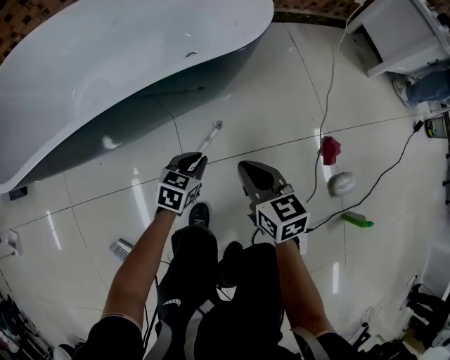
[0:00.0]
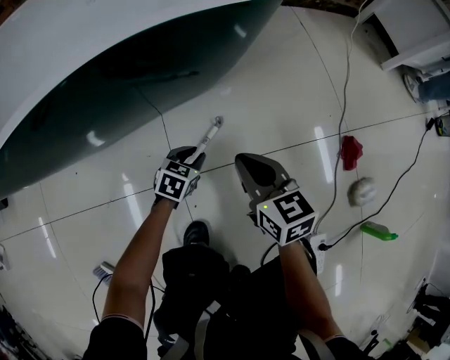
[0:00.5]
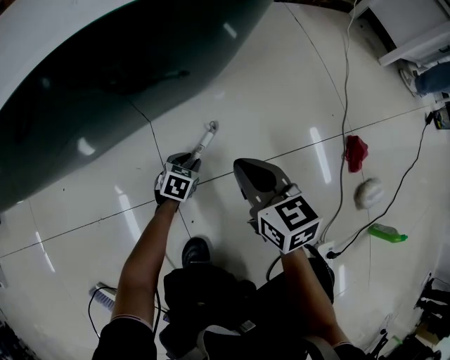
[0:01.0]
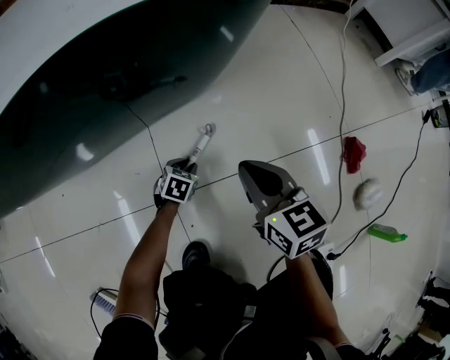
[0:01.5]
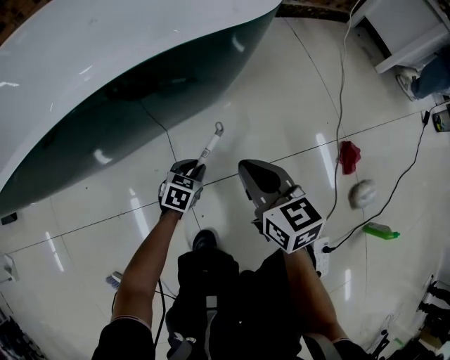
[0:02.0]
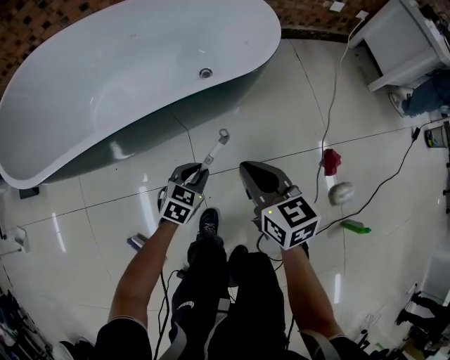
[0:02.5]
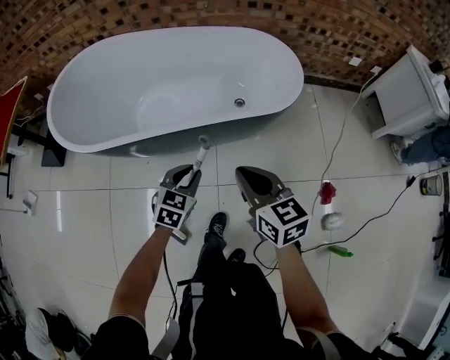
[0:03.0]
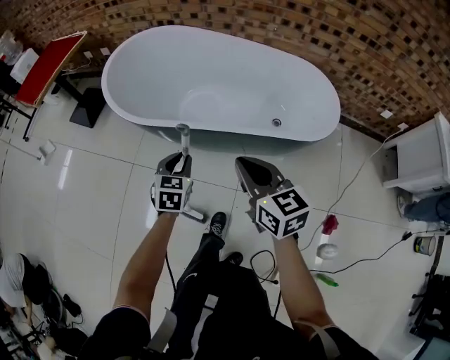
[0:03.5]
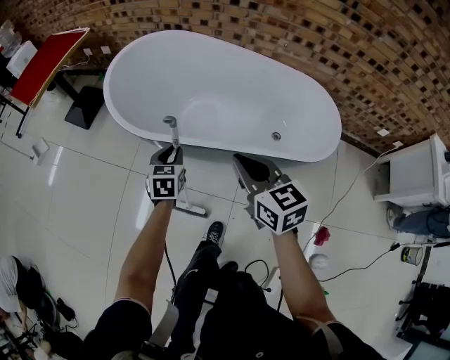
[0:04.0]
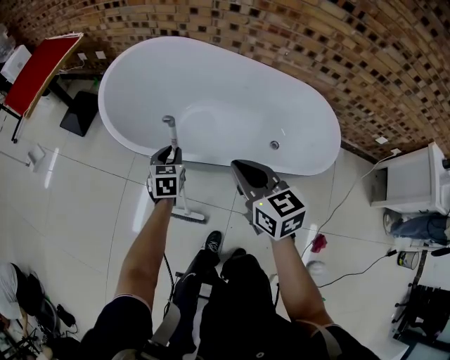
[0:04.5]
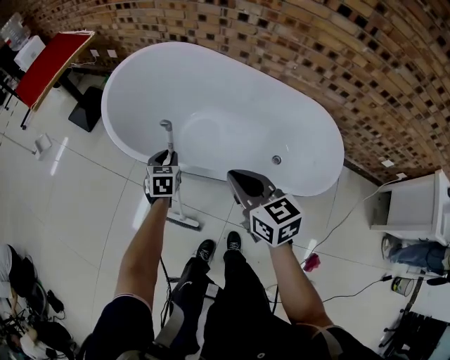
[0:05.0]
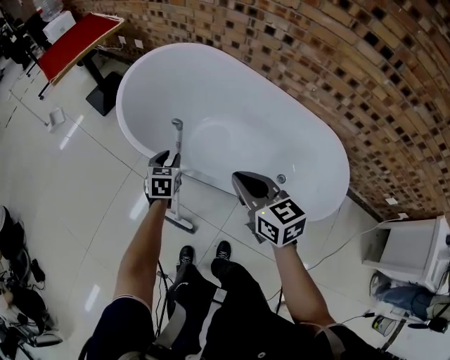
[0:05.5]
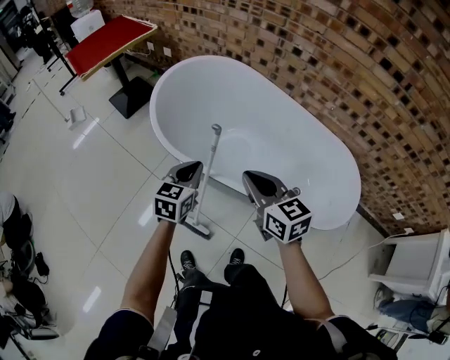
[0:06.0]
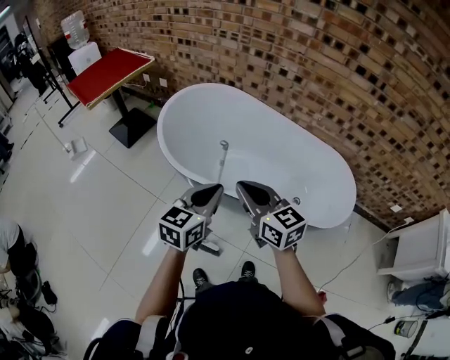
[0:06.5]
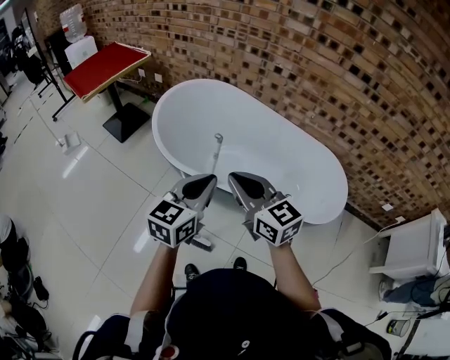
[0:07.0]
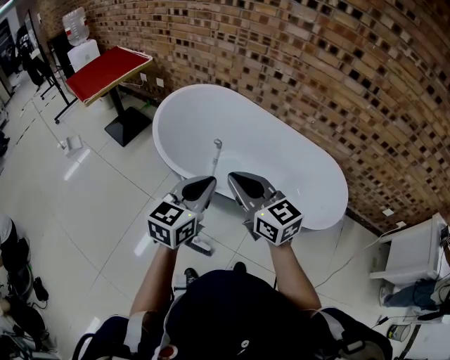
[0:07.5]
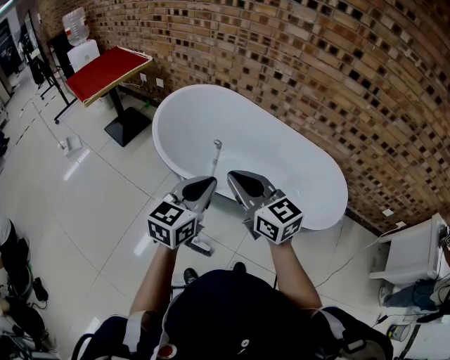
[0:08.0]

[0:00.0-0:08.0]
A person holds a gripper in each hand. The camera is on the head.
0:00.0 to 0:02.0: The left gripper shifts some 20 cm downward. Meanwhile the right gripper heads downward, covering some 10 cm.
0:02.0 to 0:04.0: The two grippers go roughly 50 cm upward. The right gripper changes its angle by some 40 degrees. The left gripper rotates about 60 degrees.
0:04.0 to 0:06.0: The right gripper shifts approximately 10 cm forward; the left gripper goes some 10 cm upward.
0:06.0 to 0:08.0: The right gripper heads upward and to the left, covering some 10 cm, while the left gripper travels upward and backward by about 20 cm, and turns by about 20 degrees.

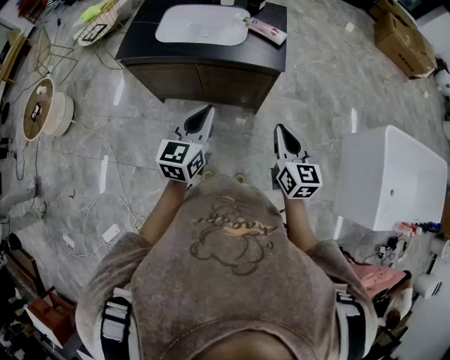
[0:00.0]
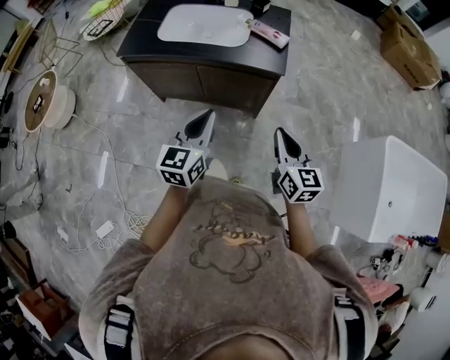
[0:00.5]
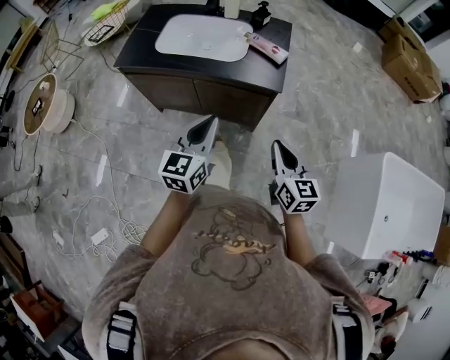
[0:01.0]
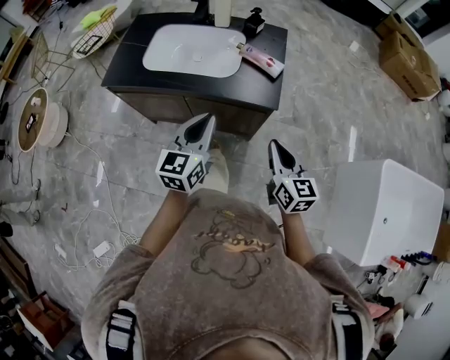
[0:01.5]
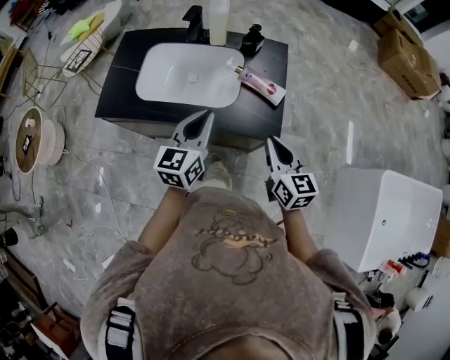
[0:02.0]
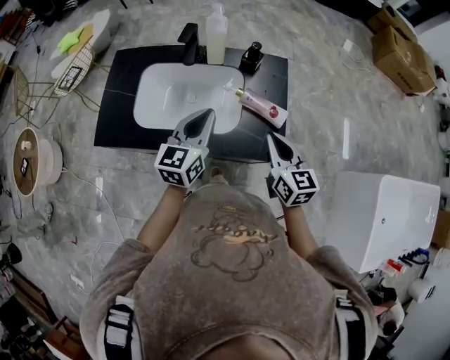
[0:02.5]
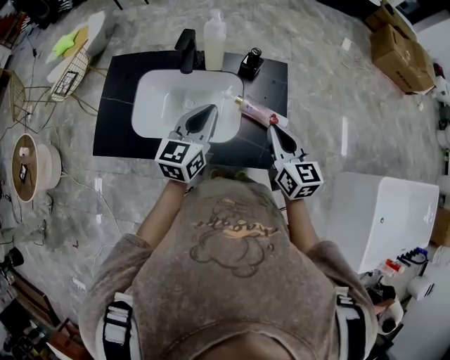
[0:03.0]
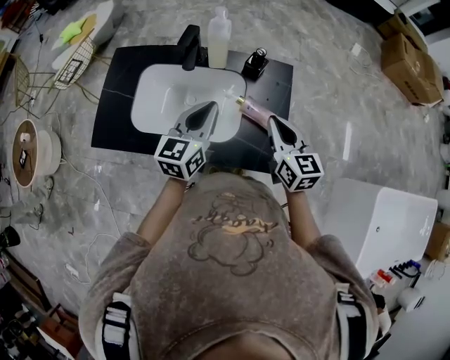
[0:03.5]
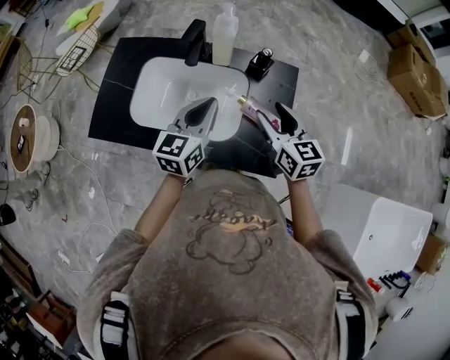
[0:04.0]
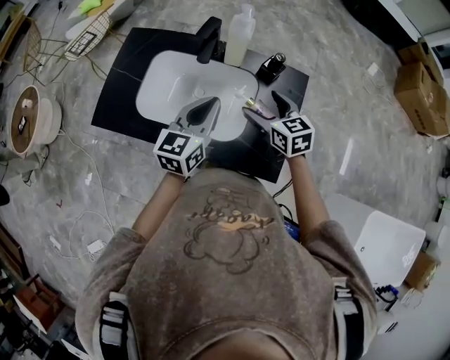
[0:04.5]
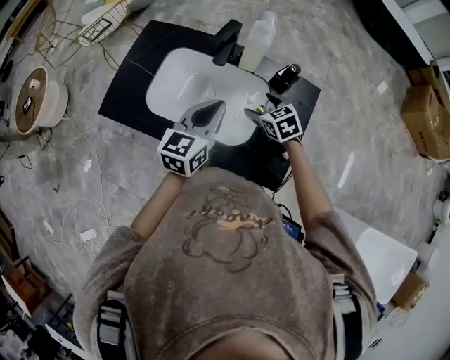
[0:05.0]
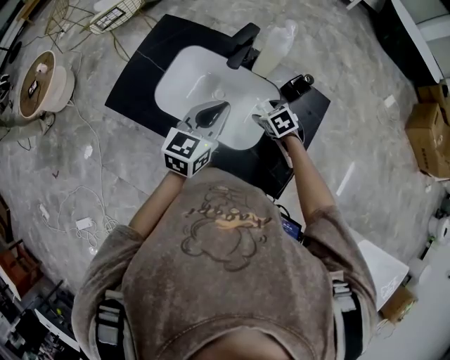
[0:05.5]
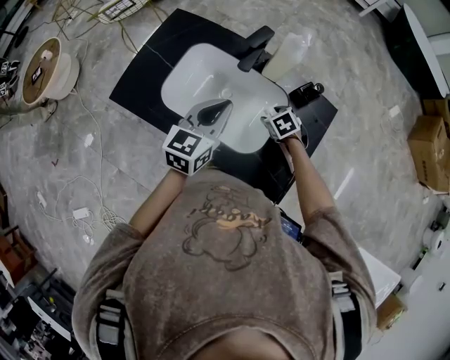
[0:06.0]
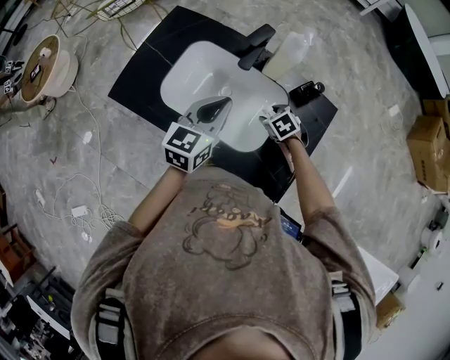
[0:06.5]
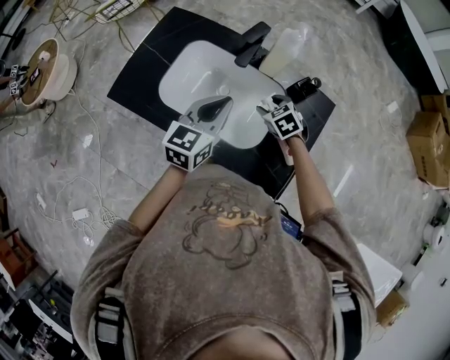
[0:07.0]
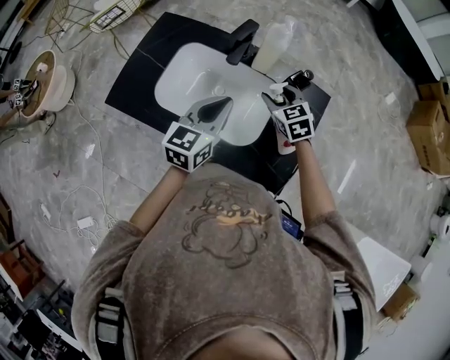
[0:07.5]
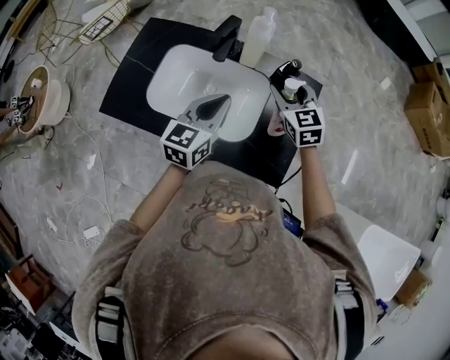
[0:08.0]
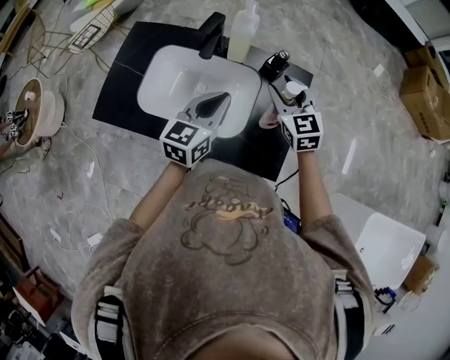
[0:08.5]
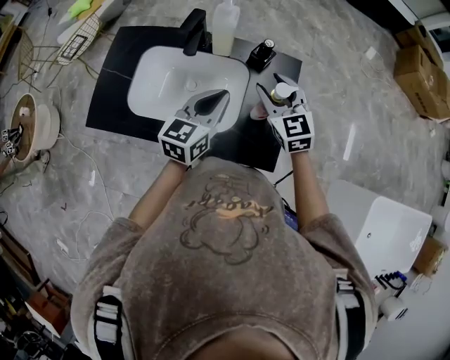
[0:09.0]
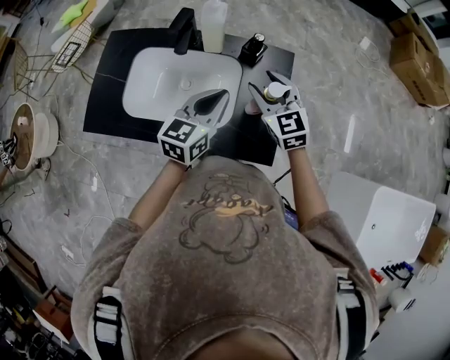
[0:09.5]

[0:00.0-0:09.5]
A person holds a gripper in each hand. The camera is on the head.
0:00.0 to 0:02.0: Both grippers move forward, about 30 cm.
0:02.0 to 0:04.0: The two grippers go some 20 cm forward. The right gripper opens its fingers.
0:04.0 to 0:05.5: The right gripper moves downward and forward, about 20 cm, and tips its fingers downward by some 40 degrees. The left gripper moves to the left, roughly 5 cm.
0:05.5 to 0:07.5: The right gripper travels upward by about 10 cm, and changes its angle by approximately 20 degrees.
0:07.5 to 0:09.5: The right gripper heads to the right, upward and backward, covering roughly 15 cm, and swivels about 20 degrees, while the left gripper is displaced to the right by about 10 cm.

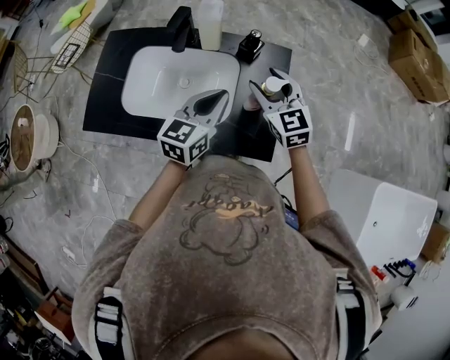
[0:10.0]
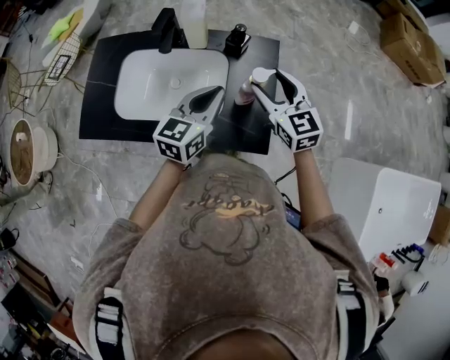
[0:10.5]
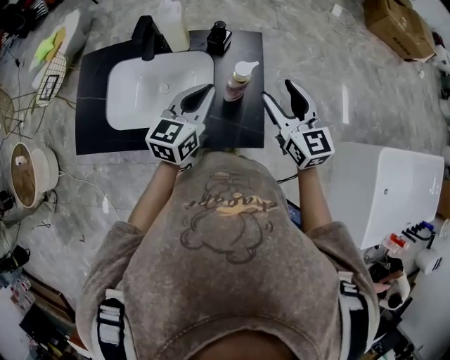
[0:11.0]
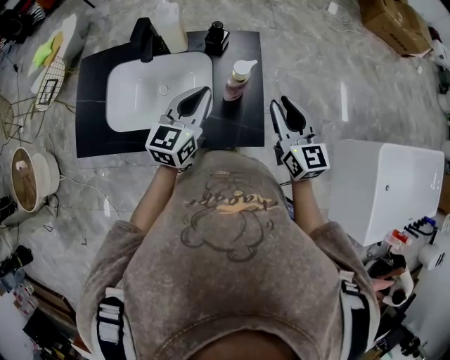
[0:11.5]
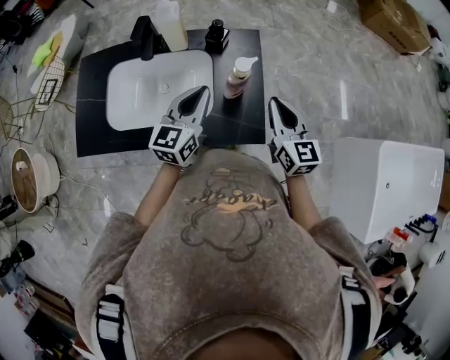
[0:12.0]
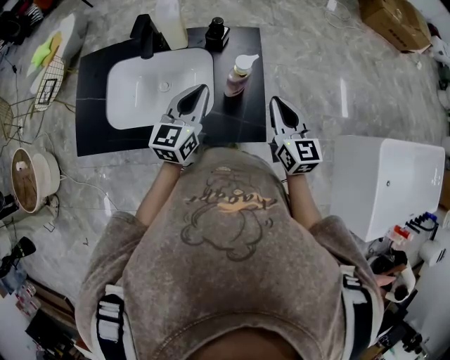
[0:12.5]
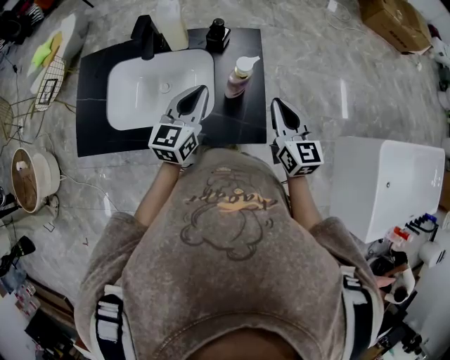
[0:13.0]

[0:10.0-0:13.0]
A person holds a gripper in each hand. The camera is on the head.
0:10.0 to 0:11.5: The right gripper goes about 15 cm to the right and backward, and changes its angle by some 30 degrees.
0:11.5 to 0:13.0: There are only small adjustments of the grippers.

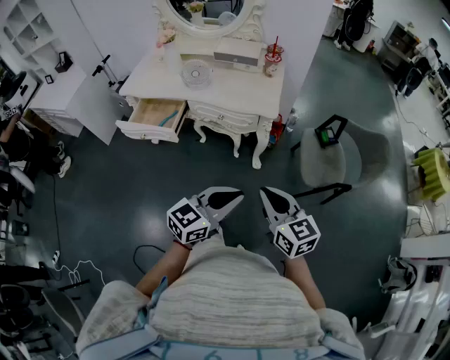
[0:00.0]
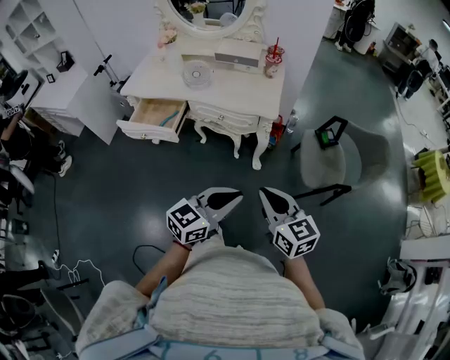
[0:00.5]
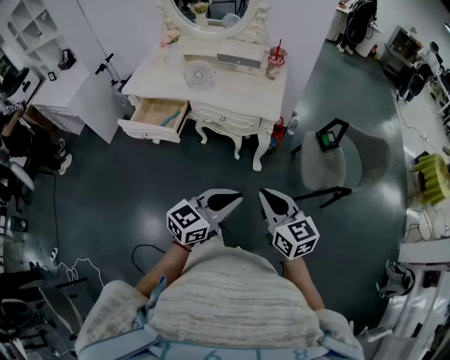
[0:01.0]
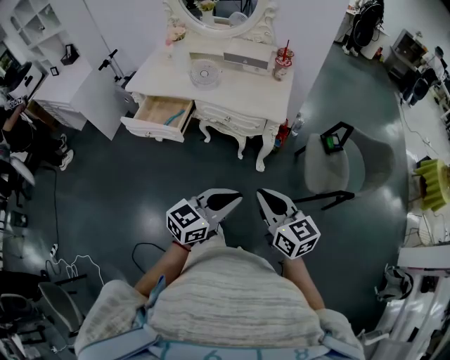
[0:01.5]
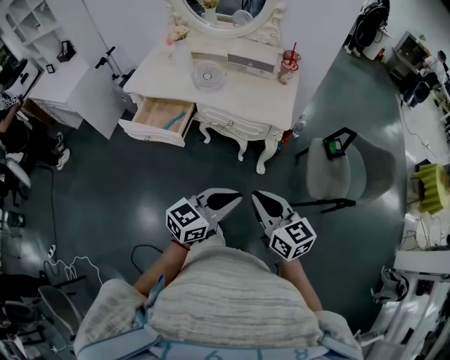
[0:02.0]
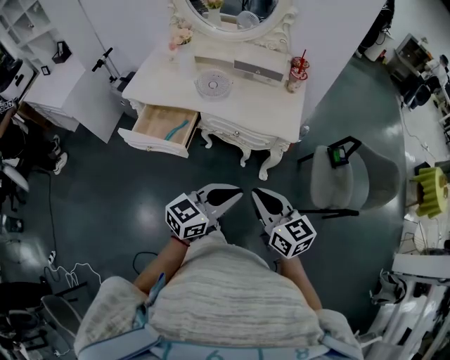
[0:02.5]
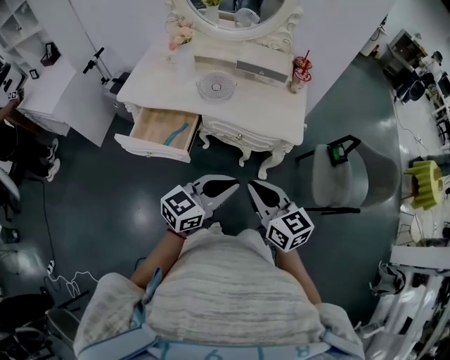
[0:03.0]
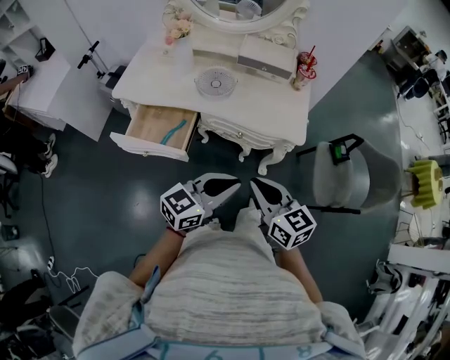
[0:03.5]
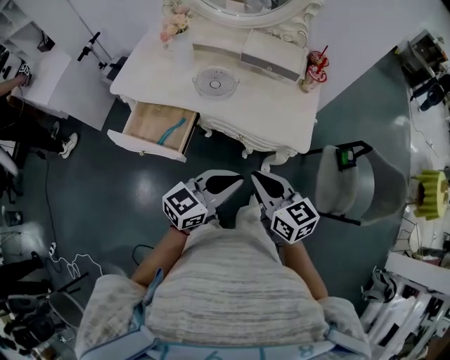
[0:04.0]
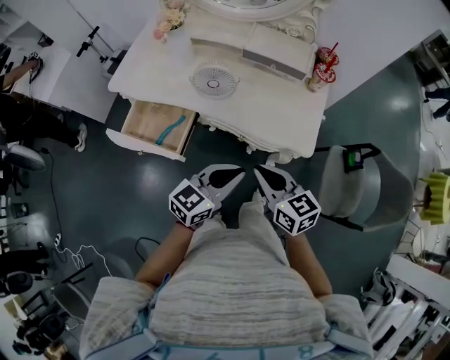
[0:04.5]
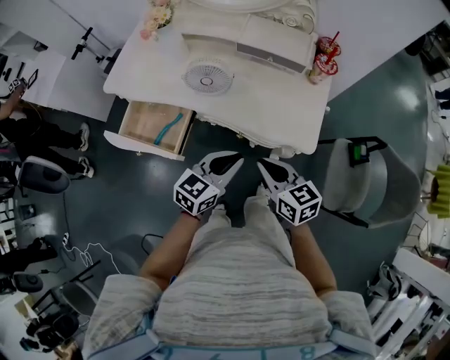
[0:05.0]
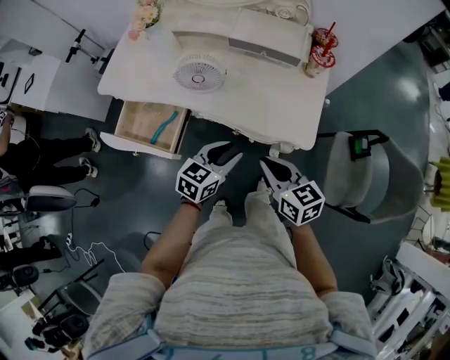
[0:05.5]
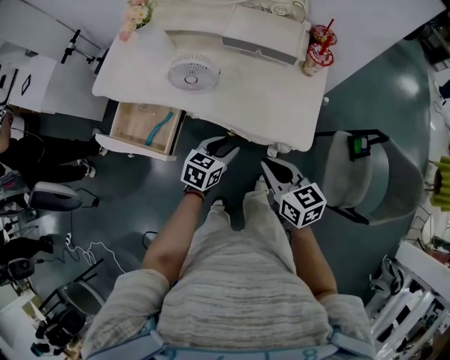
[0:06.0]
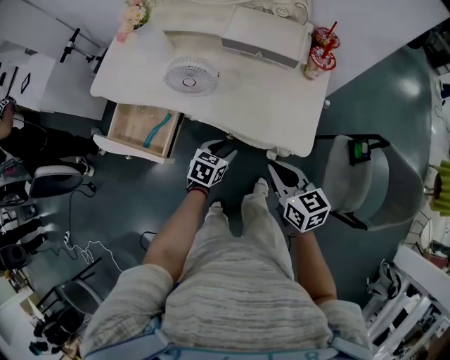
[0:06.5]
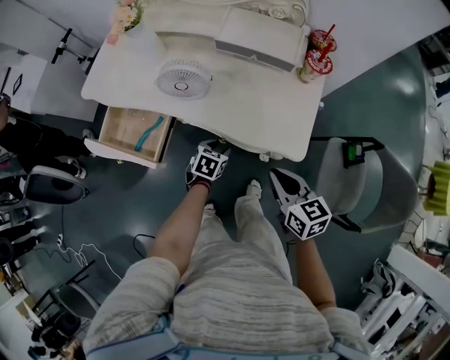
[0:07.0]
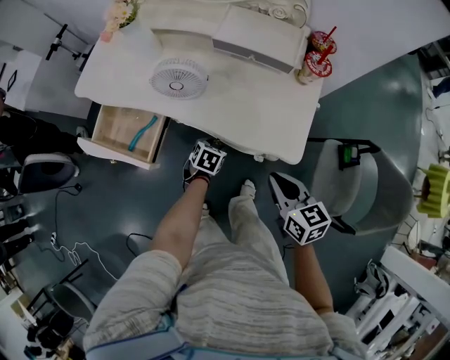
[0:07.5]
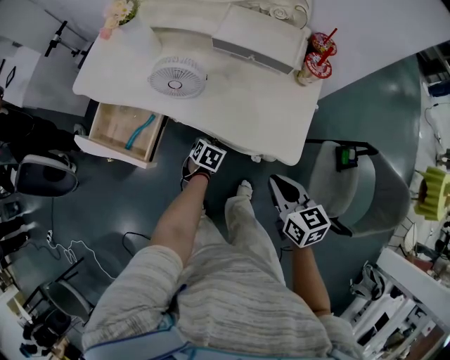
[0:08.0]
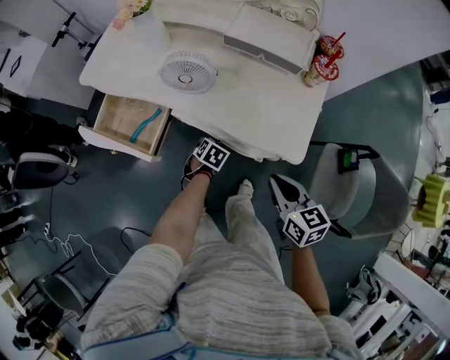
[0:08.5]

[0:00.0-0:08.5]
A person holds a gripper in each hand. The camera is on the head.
0:00.0 to 0:02.0: The left gripper heads to the left and forward, covering approximately 10 cm. The right gripper travels to the left by about 10 cm.
0:02.0 to 0:04.0: The grippers both shift forward and to the left by approximately 25 cm.
0:04.0 to 0:06.5: The right gripper is displaced forward, to the right and downward by about 20 cm; the left gripper shifts some 30 cm downward and forward, tilts its fingers some 40 degrees downward, and opens its fingers.
0:06.5 to 0:08.5: The left gripper travels downward by some 10 cm, and changes its angle by approximately 20 degrees.
